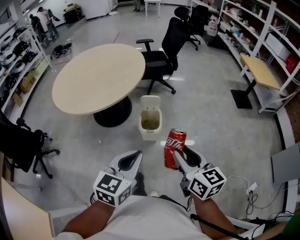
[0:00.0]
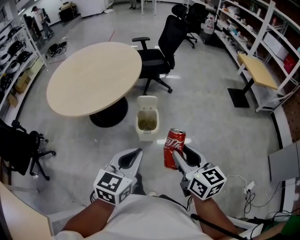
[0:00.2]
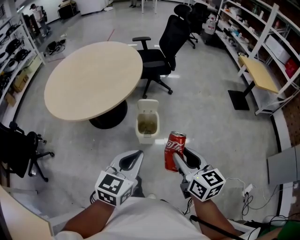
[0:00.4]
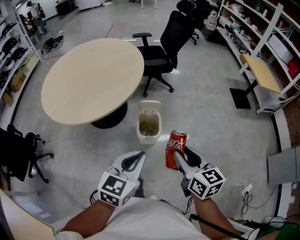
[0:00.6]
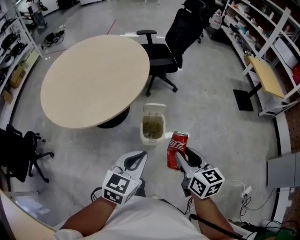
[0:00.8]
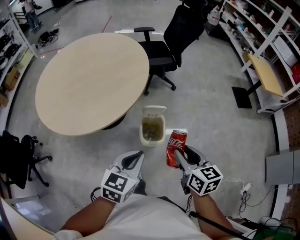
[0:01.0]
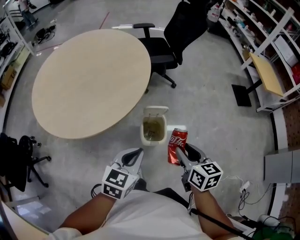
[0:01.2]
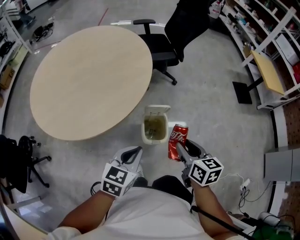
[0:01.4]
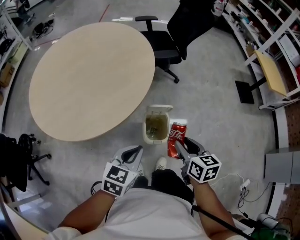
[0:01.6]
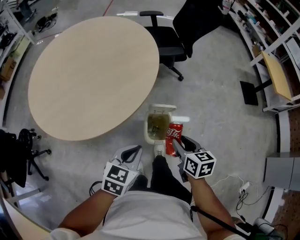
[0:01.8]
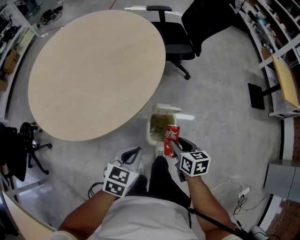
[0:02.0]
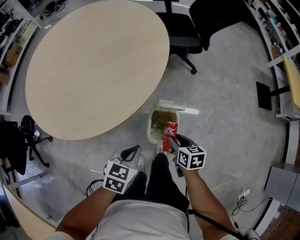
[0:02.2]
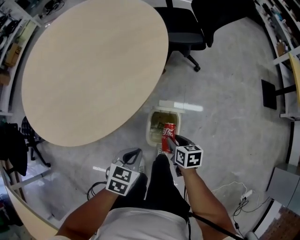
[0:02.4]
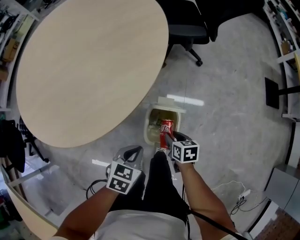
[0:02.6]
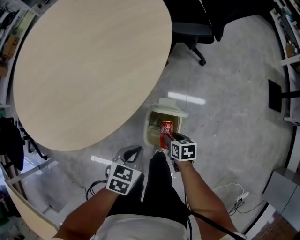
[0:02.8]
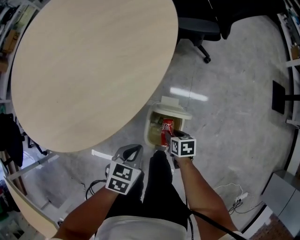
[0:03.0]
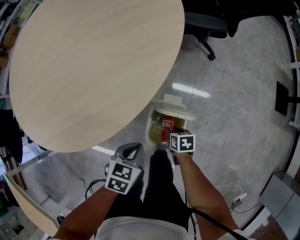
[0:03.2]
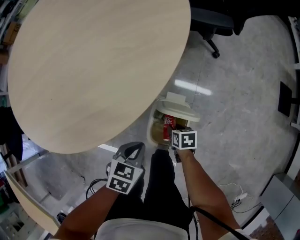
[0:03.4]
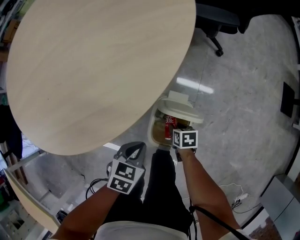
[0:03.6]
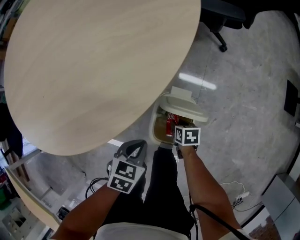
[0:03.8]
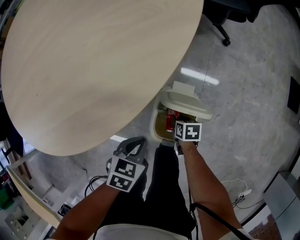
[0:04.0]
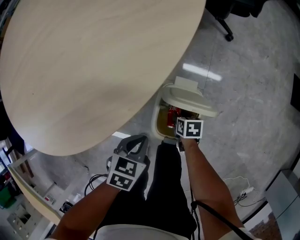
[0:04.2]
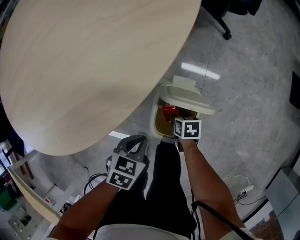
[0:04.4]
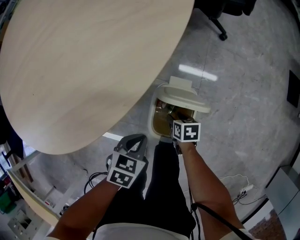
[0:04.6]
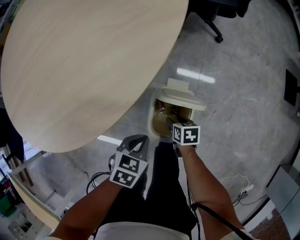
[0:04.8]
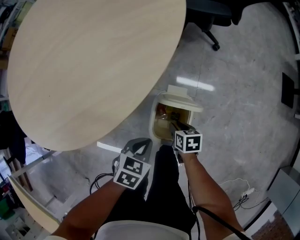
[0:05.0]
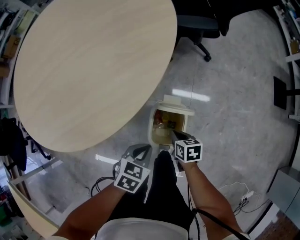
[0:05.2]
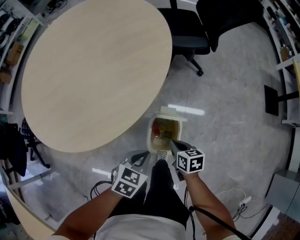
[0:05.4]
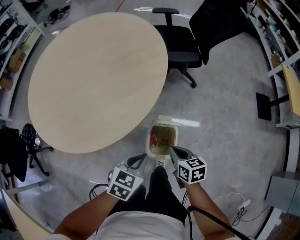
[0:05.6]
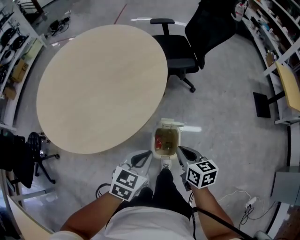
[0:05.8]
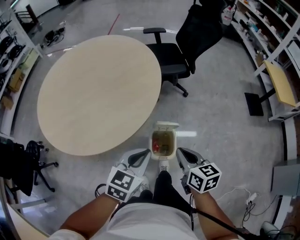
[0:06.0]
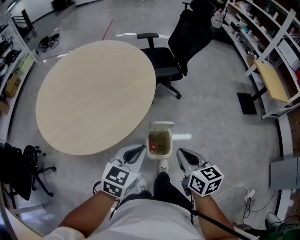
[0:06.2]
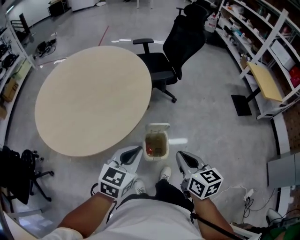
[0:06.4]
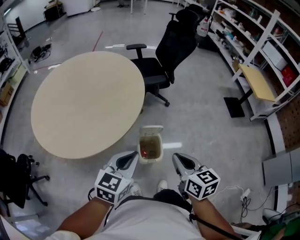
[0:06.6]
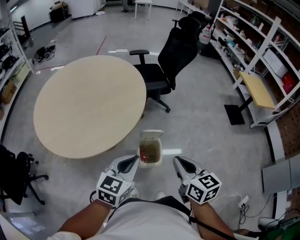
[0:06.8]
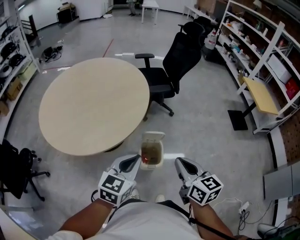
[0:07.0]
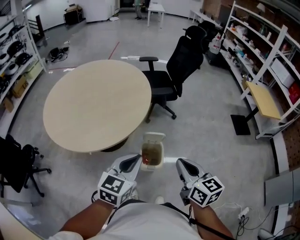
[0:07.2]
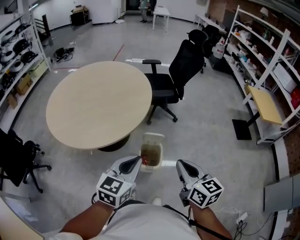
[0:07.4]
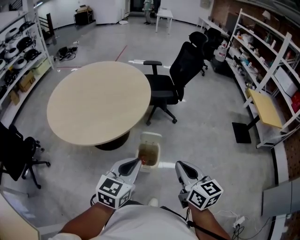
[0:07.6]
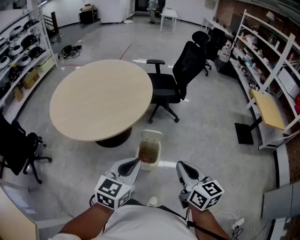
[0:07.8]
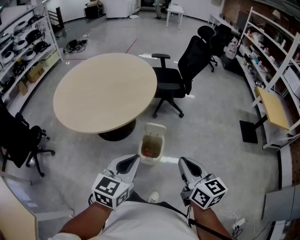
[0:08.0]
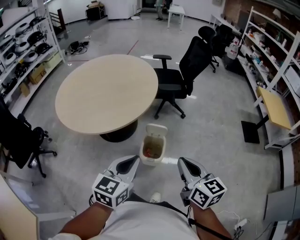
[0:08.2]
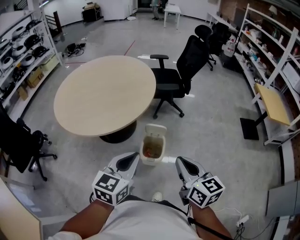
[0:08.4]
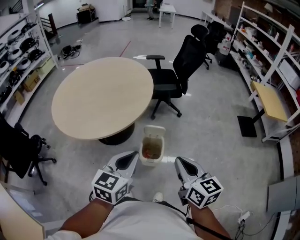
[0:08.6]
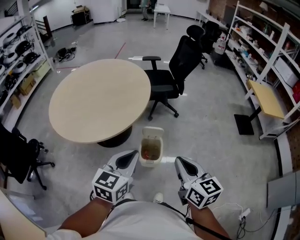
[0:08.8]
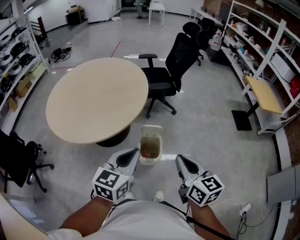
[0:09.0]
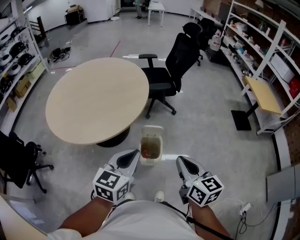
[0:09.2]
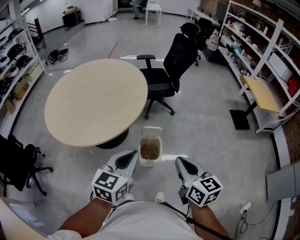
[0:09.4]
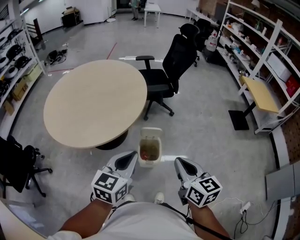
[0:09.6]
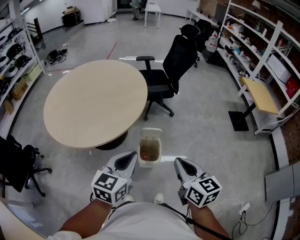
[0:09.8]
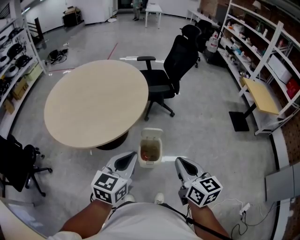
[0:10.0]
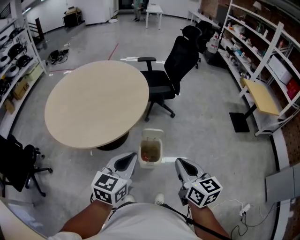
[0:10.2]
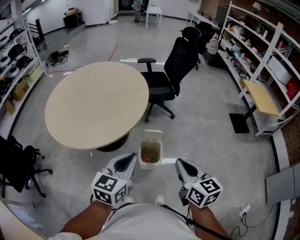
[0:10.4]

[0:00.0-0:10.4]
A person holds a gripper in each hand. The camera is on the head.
0:00.0 to 0:01.4: The left gripper moves forward, to the left and downward, some 25 cm. Meanwhile the right gripper shifts roughly 25 cm forward and downward, and turns by some 20 degrees.
0:01.4 to 0:03.0: The left gripper is displaced downward by about 20 cm, and swivels some 30 degrees; the right gripper heads downward, covering roughly 35 cm, and turns by approximately 40 degrees.
0:03.0 to 0:04.4: The two grippers go roughly 10 cm downward.
0:04.4 to 0:06.0: Both grippers travel together upward, roughly 40 cm. The right gripper tips its fingers upward by some 30 degrees, and closes up. The left gripper tips its fingers upward by about 30 degrees.
0:06.0 to 0:07.4: The left gripper goes some 10 cm upward and backward. The right gripper travels upward, backward and to the right by roughly 15 cm.
0:07.4 to 0:10.4: The grippers make only small movements.

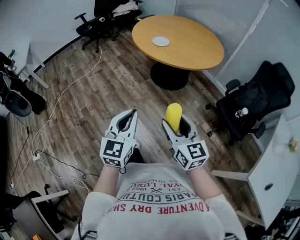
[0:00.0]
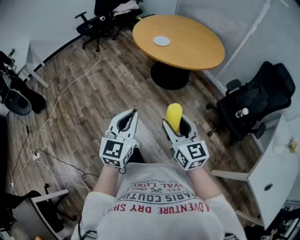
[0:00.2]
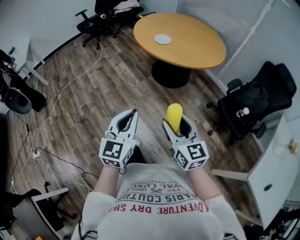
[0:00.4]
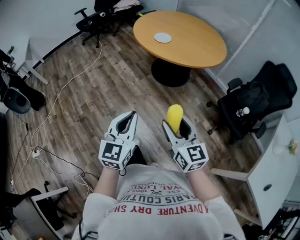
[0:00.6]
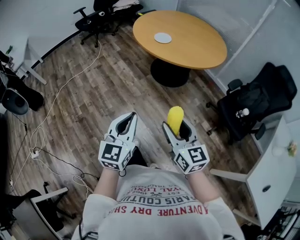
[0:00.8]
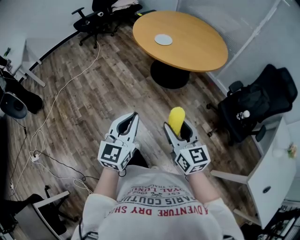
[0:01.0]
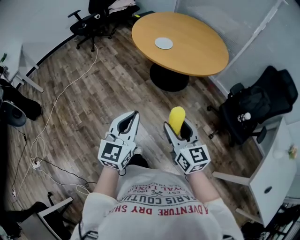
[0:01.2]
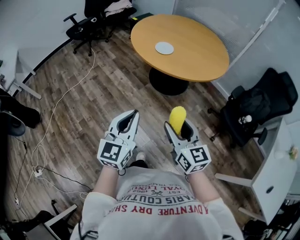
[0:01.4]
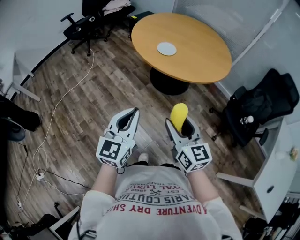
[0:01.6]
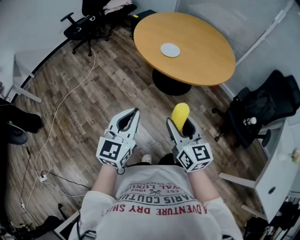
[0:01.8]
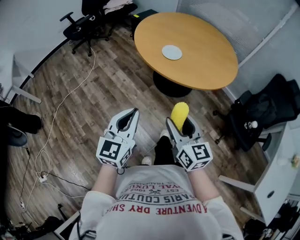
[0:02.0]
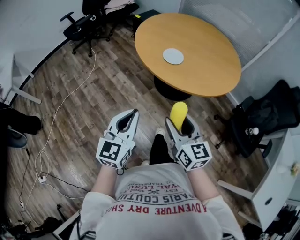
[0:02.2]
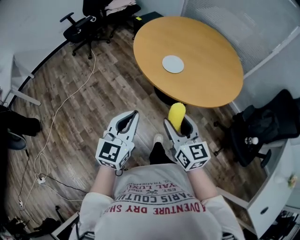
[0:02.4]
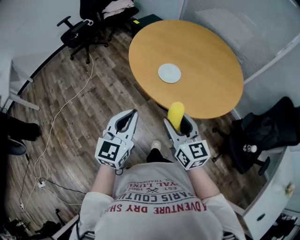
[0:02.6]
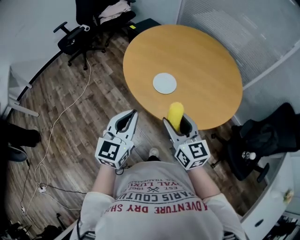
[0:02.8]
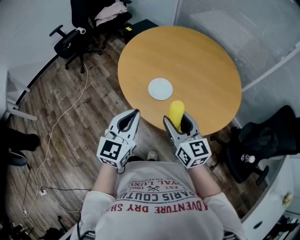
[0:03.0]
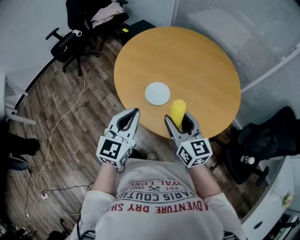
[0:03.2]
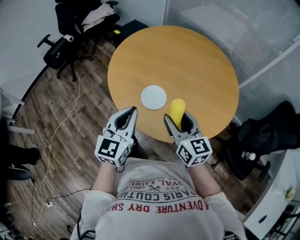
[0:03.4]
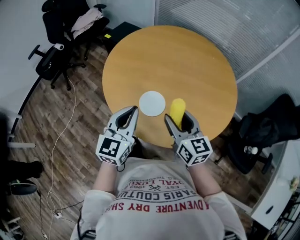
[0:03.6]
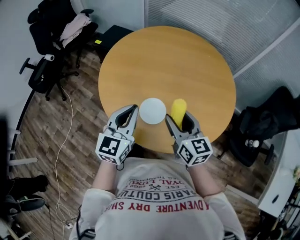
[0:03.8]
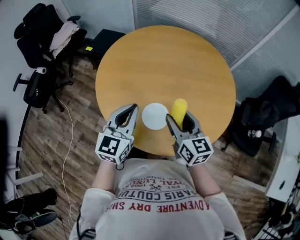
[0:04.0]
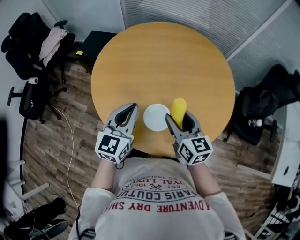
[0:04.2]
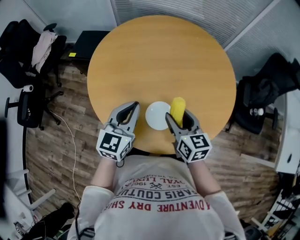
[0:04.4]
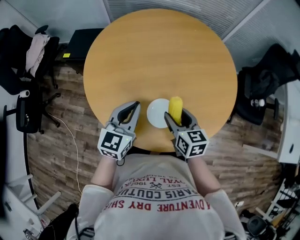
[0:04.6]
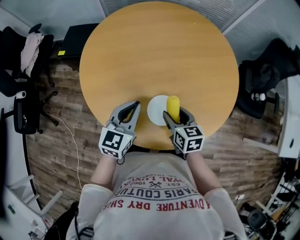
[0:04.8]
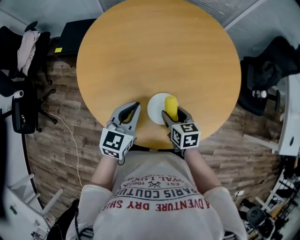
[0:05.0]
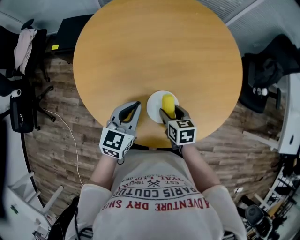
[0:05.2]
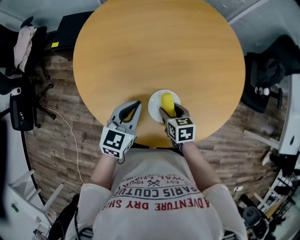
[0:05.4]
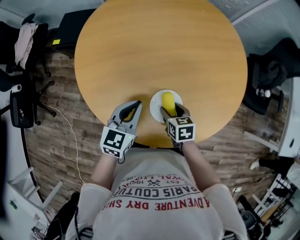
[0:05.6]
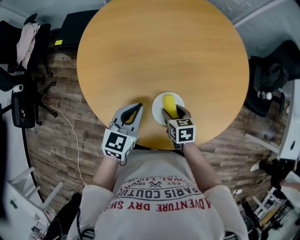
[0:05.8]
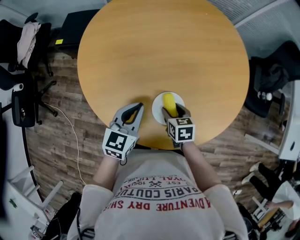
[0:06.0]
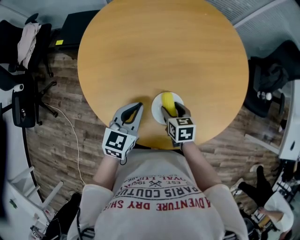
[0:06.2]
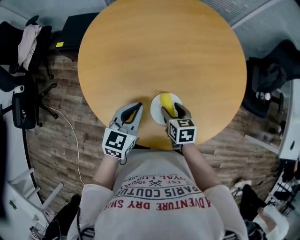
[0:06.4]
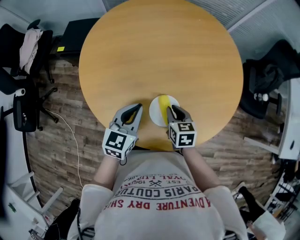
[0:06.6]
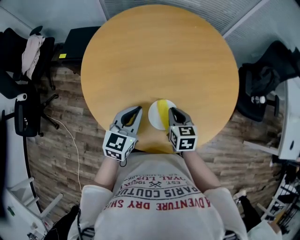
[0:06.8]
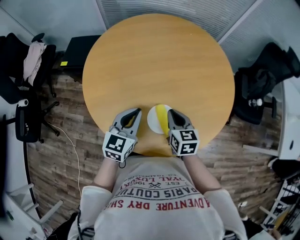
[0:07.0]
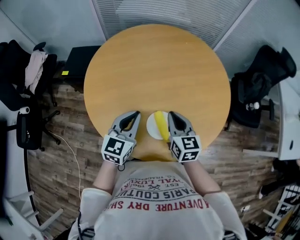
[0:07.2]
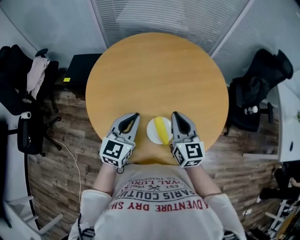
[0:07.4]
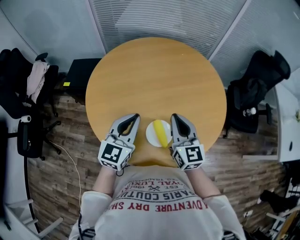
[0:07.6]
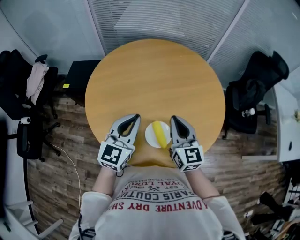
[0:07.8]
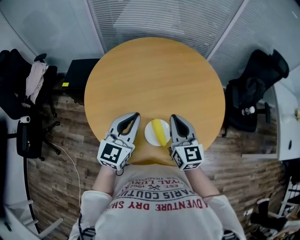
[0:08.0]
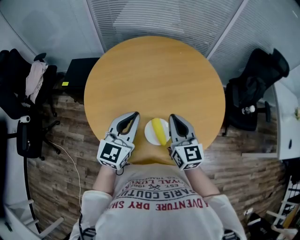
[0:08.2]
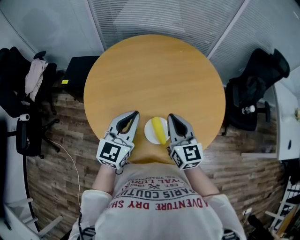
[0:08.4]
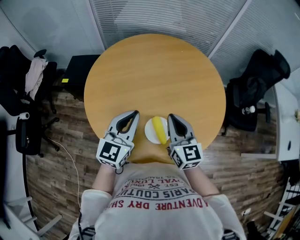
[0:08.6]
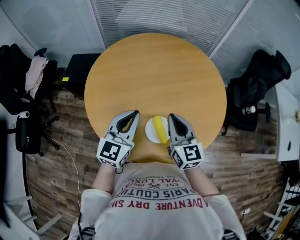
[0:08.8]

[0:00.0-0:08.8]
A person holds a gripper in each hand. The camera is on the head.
0:00.0 to 0:01.4: The left gripper travels forward by roughly 15 cm. The right gripper heads forward and to the left, covering about 15 cm.
0:01.4 to 0:03.0: The pair of grippers is taken forward, roughly 40 cm.
0:03.0 to 0:04.4: The left gripper ends up roughly 30 cm from where it was, and rotates about 30 degrees, while the right gripper moves some 20 cm, and changes its angle by about 40 degrees.
0:04.4 to 0:05.8: The right gripper heads downward, covering approximately 20 cm, and points its fingers some 30 degrees further downward; the left gripper is displaced downward by some 10 cm.
0:05.8 to 0:07.4: The right gripper moves upward, approximately 25 cm, tips its fingers upward by some 50 degrees, and closes its fingers. Meanwhile the left gripper travels upward by roughly 10 cm.
0:07.4 to 0:08.8: There are only small adjustments of the grippers.

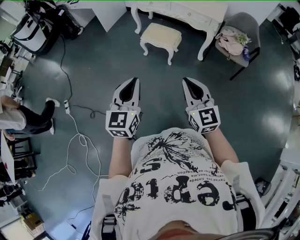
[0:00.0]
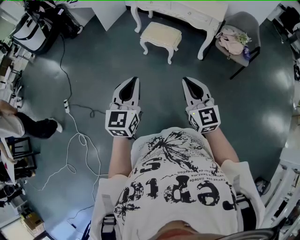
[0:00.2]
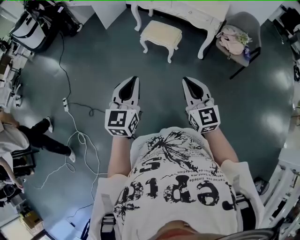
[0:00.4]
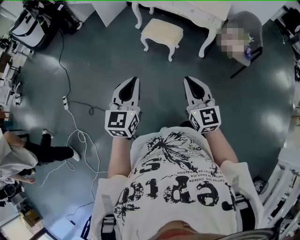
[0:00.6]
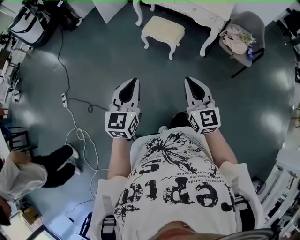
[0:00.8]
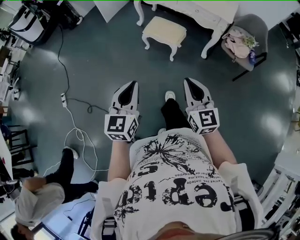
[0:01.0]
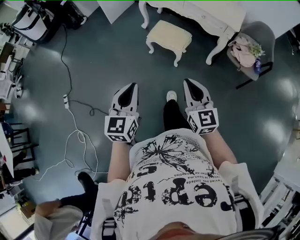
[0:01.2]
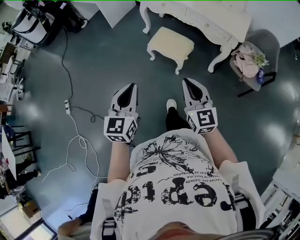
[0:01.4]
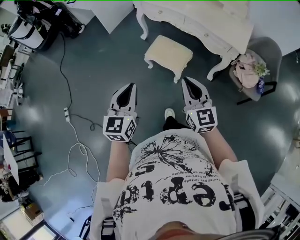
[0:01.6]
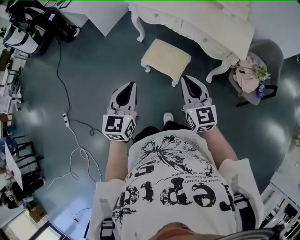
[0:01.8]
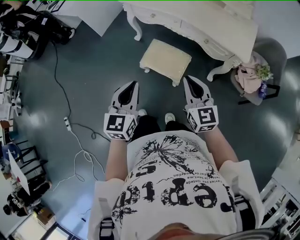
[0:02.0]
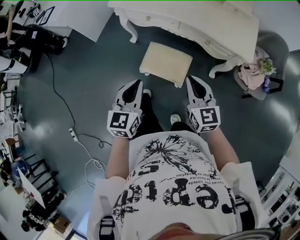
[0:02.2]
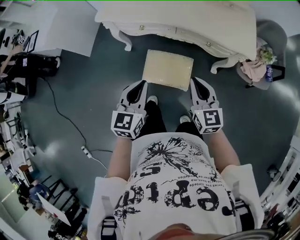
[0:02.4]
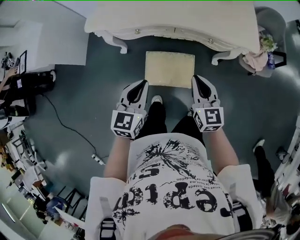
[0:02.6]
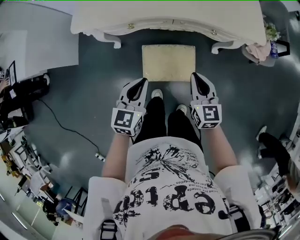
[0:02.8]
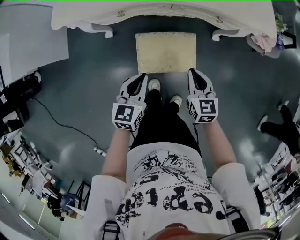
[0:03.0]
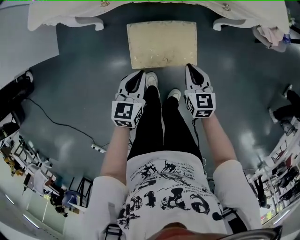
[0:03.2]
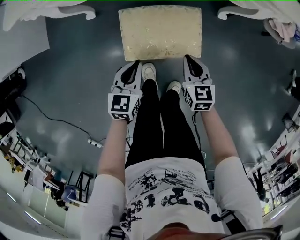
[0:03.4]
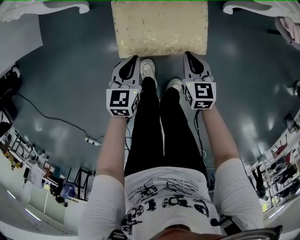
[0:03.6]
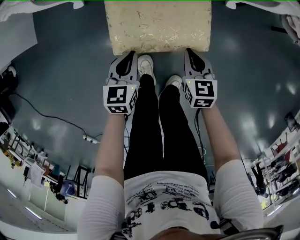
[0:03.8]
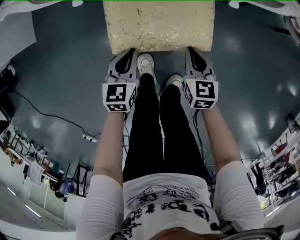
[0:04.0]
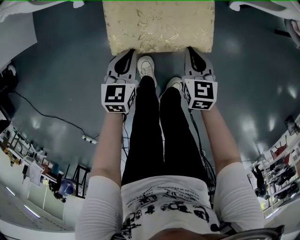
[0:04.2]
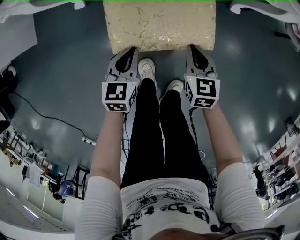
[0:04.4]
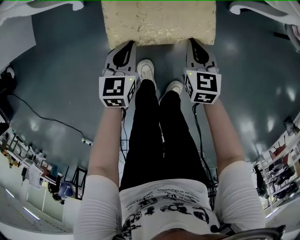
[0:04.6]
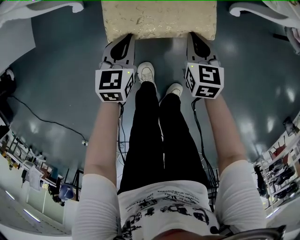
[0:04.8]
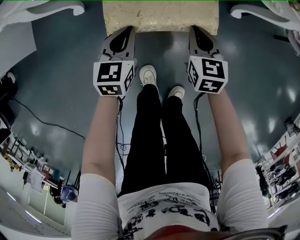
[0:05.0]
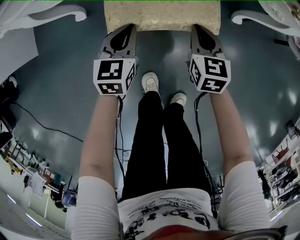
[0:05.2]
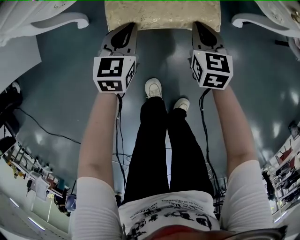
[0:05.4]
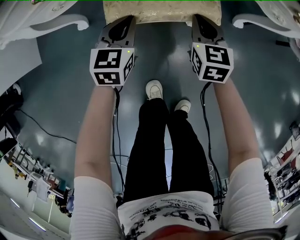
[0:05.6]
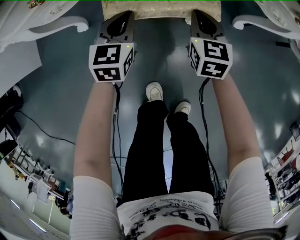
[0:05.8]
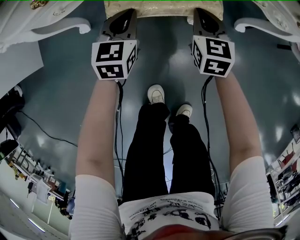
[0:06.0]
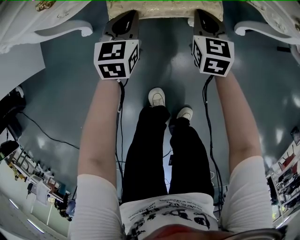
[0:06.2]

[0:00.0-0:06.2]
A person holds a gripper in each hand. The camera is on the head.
0:00.0 to 0:01.6: Both grippers move forward, approximately 35 cm.
0:01.6 to 0:03.2: The right gripper is displaced downward by roughly 40 cm, and tips its fingers downward by roughly 30 degrees. Meanwhile the left gripper ends up roughly 50 cm from where it was, and swivels approximately 50 degrees.
0:03.2 to 0:04.6: Both grippers move downward, some 20 cm.
0:04.6 to 0:06.2: Both grippers travel together forward, about 20 cm.
